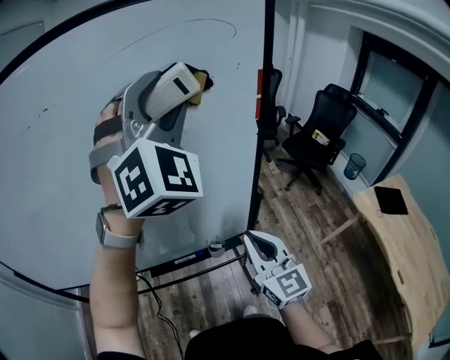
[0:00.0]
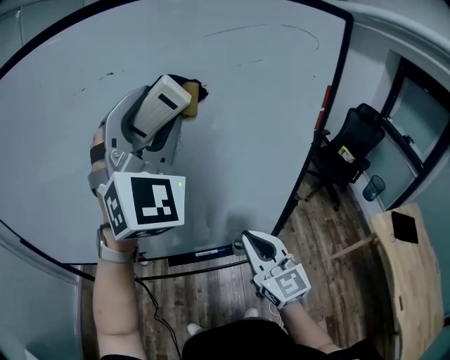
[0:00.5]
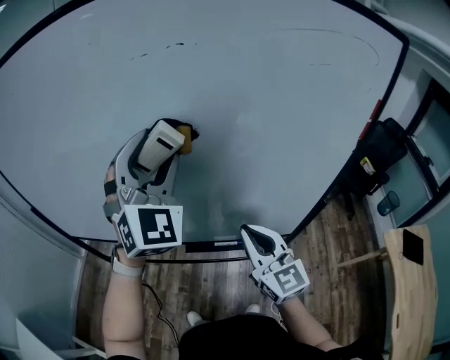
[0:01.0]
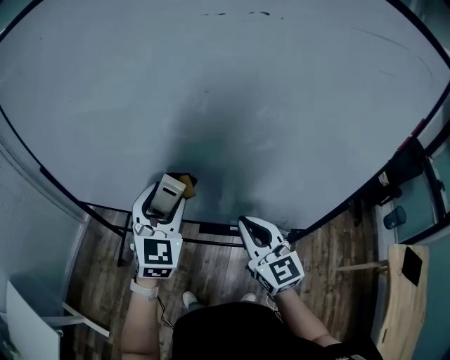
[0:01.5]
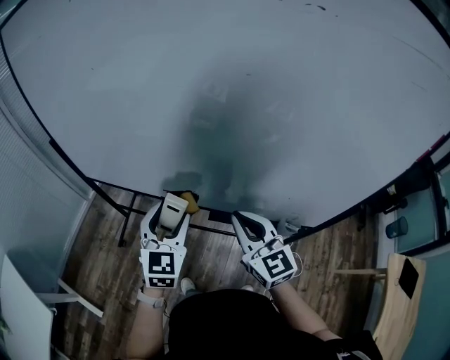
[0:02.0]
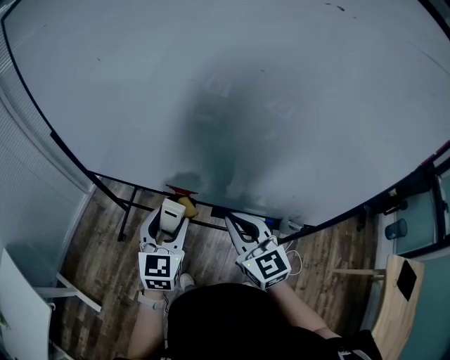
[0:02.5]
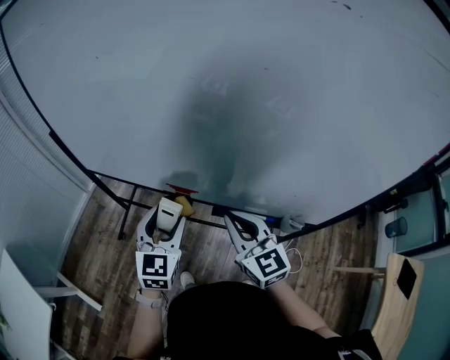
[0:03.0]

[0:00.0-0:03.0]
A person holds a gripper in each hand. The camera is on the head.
0:00.0 to 0:01.5: The left gripper shifts approximately 50 cm to the left and downward, and rolls counterclockwise, seen from behind, by approximately 40 degrees. Meanwhile the right gripper goes approximately 25 cm to the left, and changes its angle by approximately 30 degrees.
0:01.5 to 0:03.0: The right gripper heads to the left and downward, covering some 10 cm; the left gripper goes approximately 15 cm downward, to the left and backward.

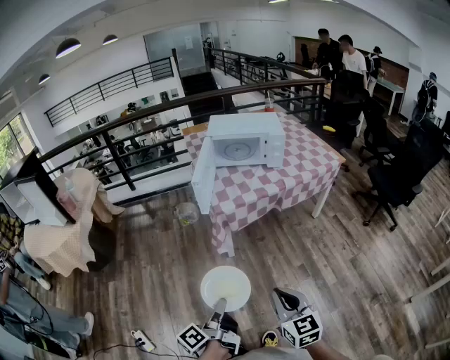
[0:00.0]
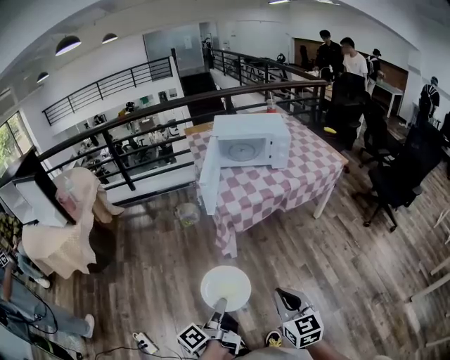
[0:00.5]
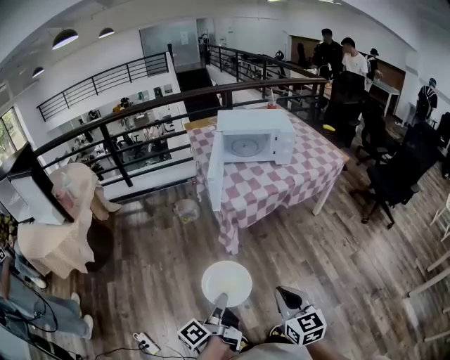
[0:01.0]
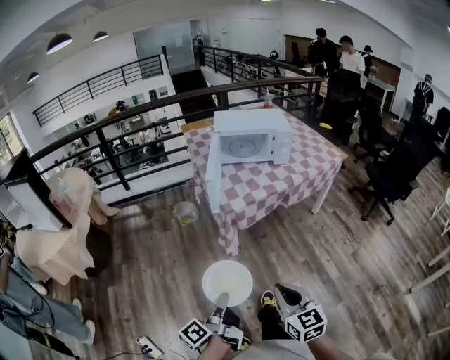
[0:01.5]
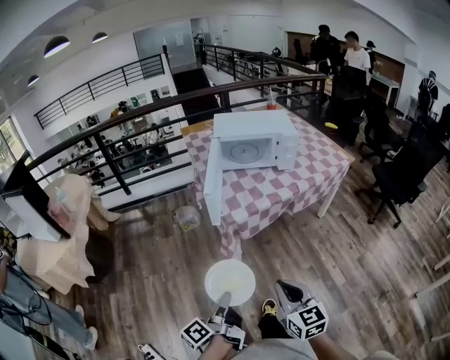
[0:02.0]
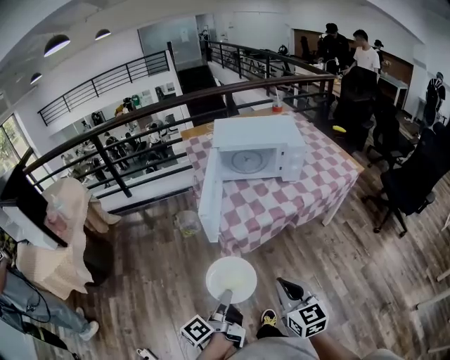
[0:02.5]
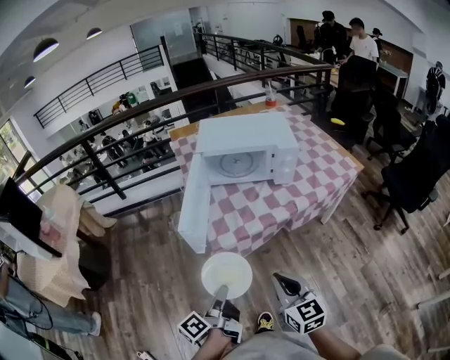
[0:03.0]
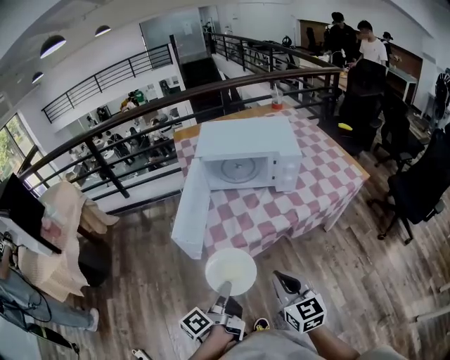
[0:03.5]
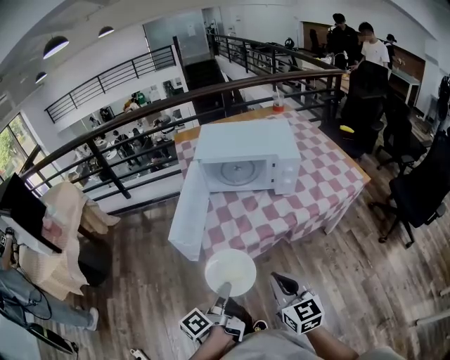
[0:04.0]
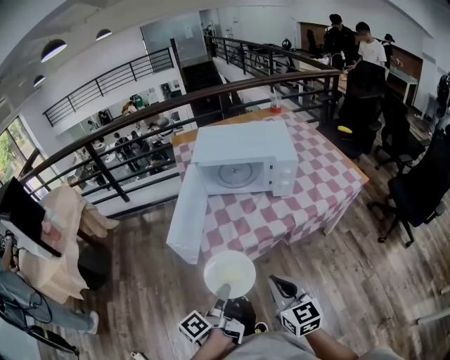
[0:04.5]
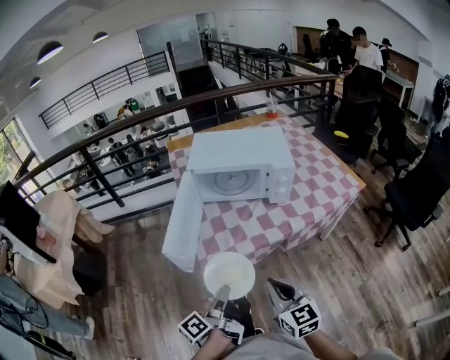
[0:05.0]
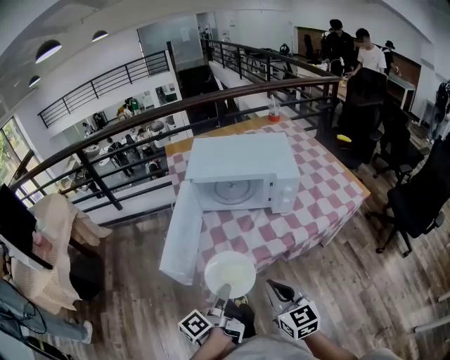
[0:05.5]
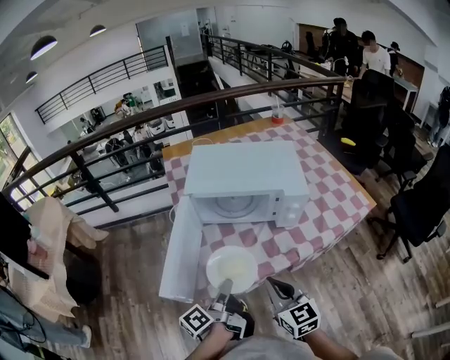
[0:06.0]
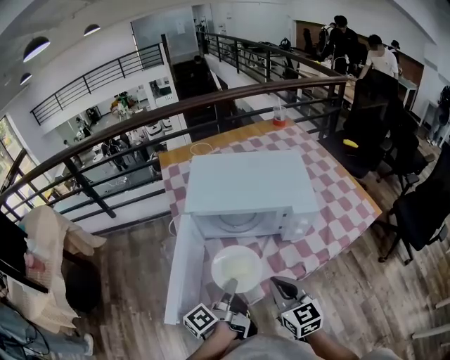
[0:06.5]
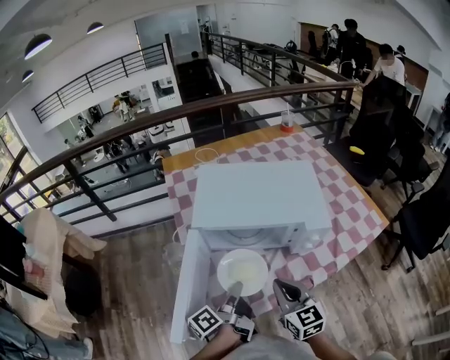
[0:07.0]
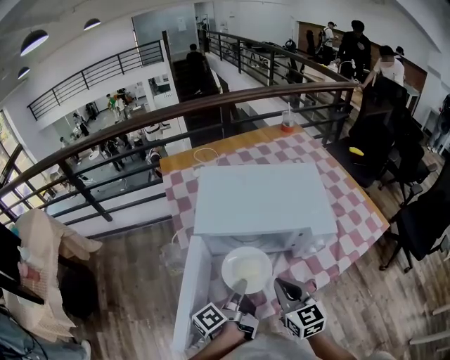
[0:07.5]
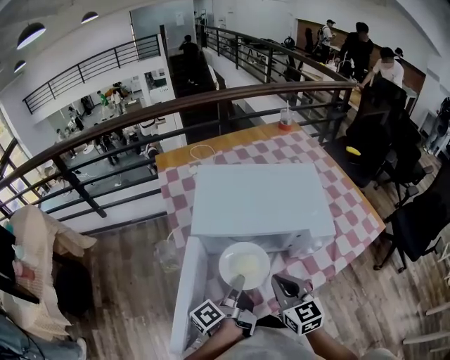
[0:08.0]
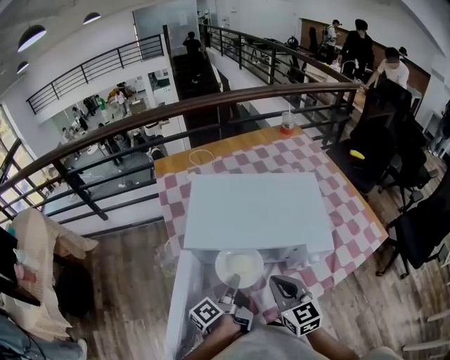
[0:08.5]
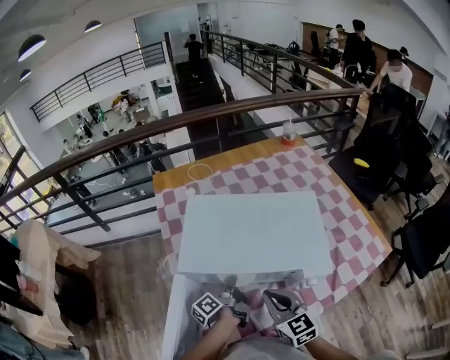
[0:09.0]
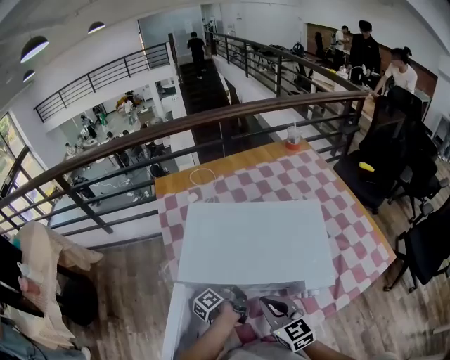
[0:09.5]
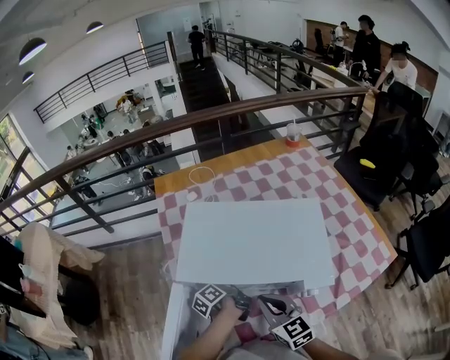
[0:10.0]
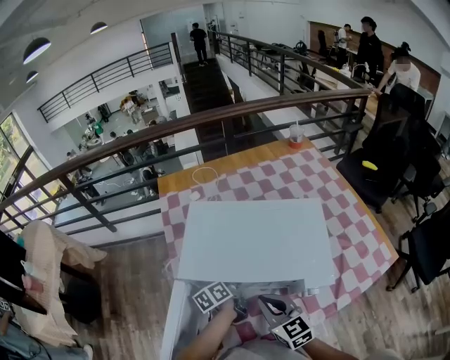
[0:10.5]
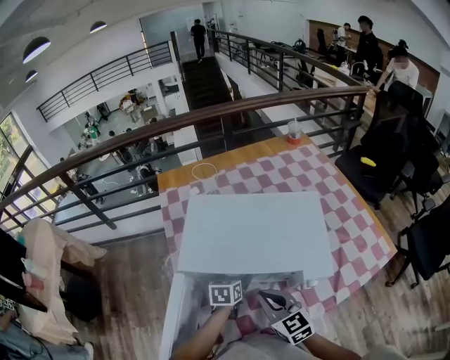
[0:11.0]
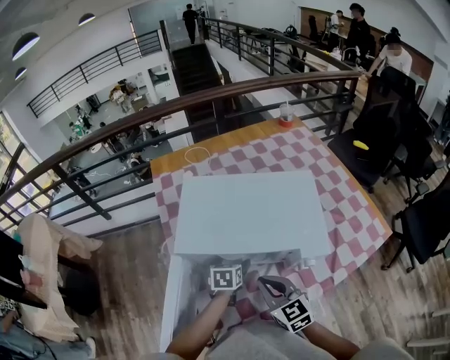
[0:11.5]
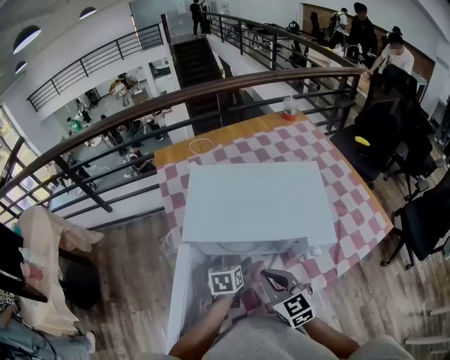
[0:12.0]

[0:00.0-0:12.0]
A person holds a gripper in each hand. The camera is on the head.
0:00.0 to 0:02.0: The two grippers go about 15 cm forward and to the left.
0:02.0 to 0:04.0: The two grippers go some 25 cm forward and to the right.
0:04.0 to 0:06.0: Both grippers move forward, roughly 20 cm.
0:06.0 to 0:08.0: The two grippers go some 20 cm forward.
0:08.0 to 0:10.0: The right gripper is displaced forward by roughly 10 cm. Meanwhile the left gripper shifts about 20 cm forward and downward, and turns by some 20 degrees.
0:10.0 to 0:12.0: The left gripper is displaced backward by some 10 cm, rolls clockwise, seen from behind, by approximately 60 degrees, and opens its fingers; the right gripper shifts by some 5 cm.

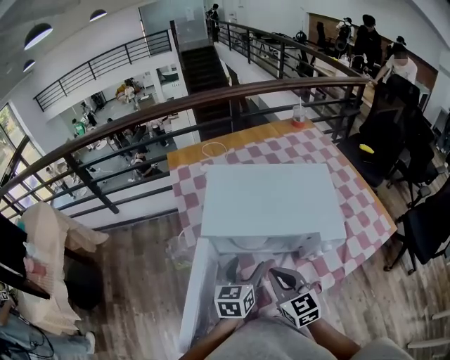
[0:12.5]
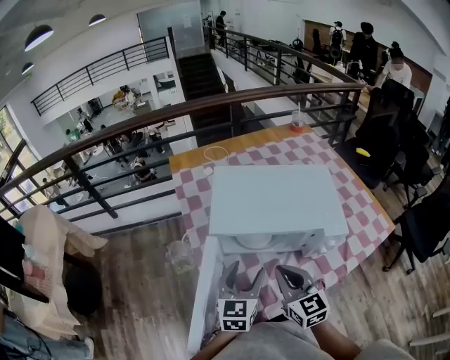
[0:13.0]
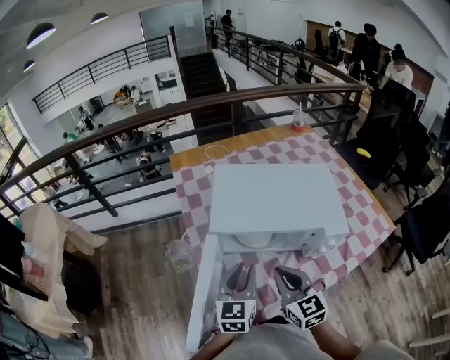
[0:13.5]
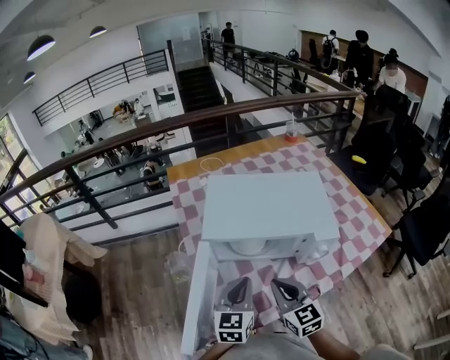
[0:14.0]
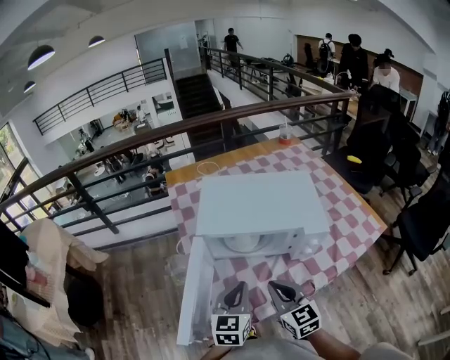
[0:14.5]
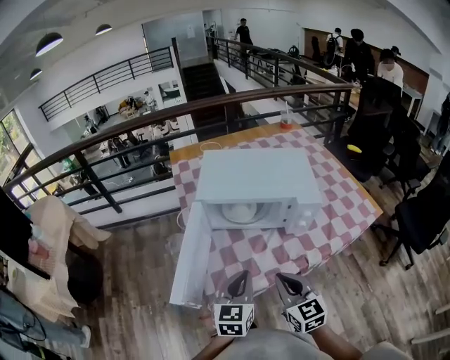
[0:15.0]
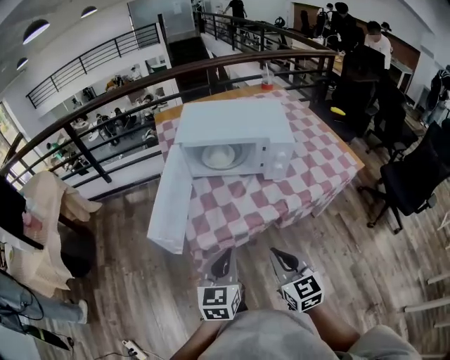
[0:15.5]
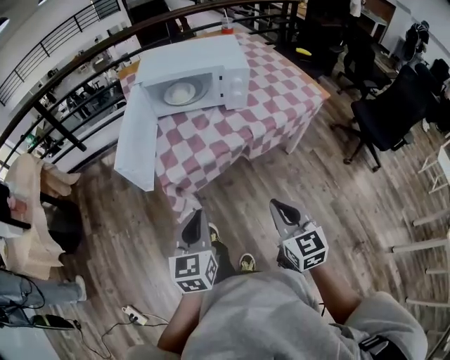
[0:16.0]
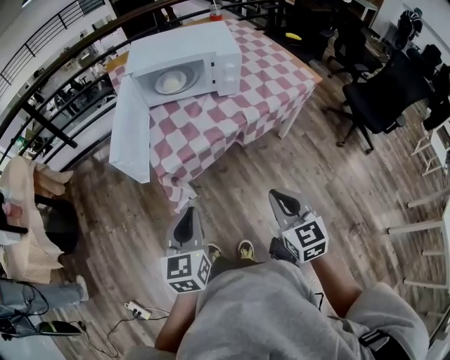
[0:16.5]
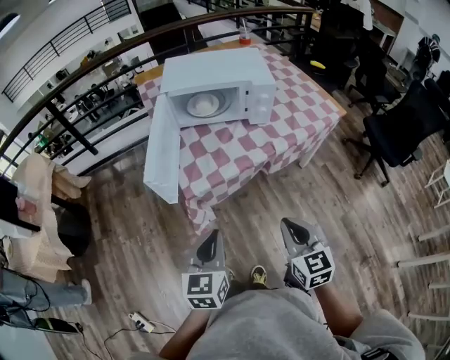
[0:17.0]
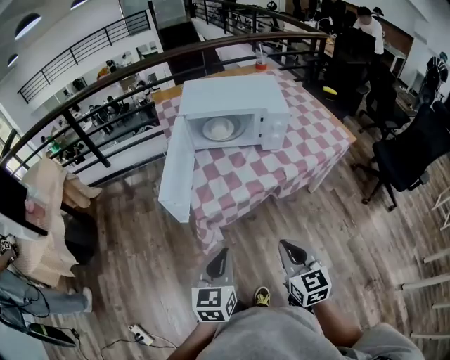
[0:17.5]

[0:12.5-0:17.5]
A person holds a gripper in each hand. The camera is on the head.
0:12.5 to 0:15.0: The two grippers go about 20 cm backward. The left gripper closes.
0:15.0 to 0:17.5: Both grippers move backward, about 25 cm.

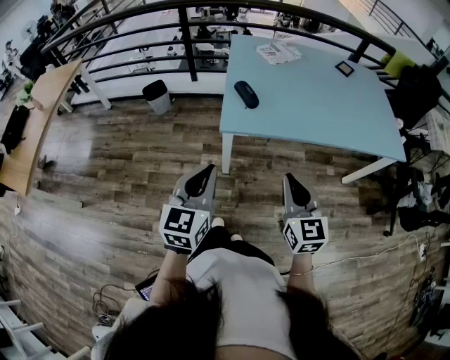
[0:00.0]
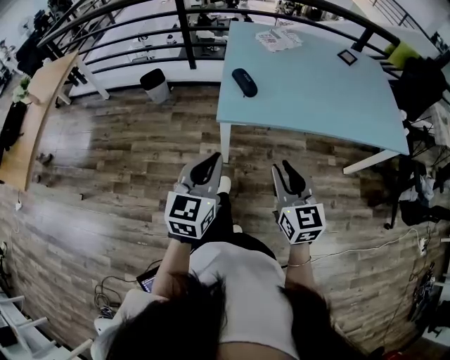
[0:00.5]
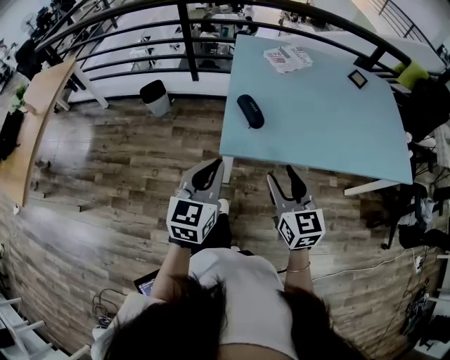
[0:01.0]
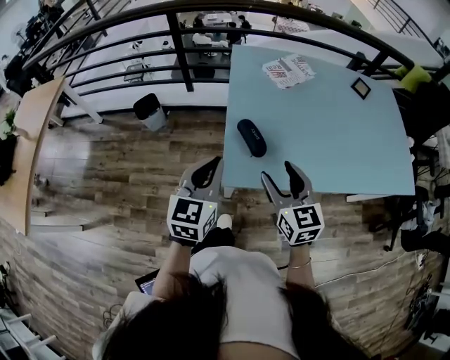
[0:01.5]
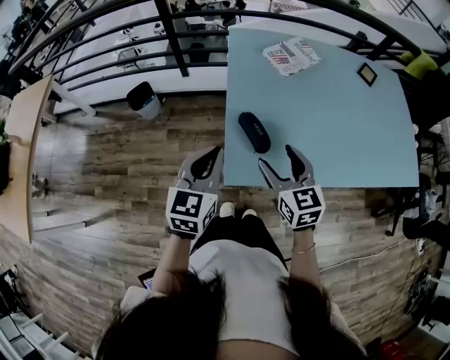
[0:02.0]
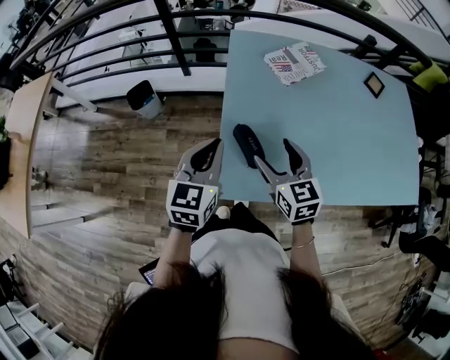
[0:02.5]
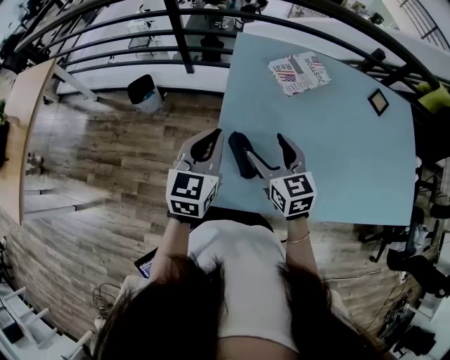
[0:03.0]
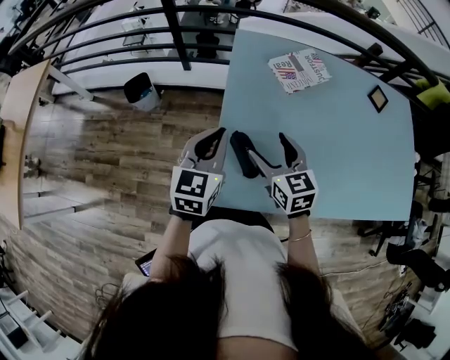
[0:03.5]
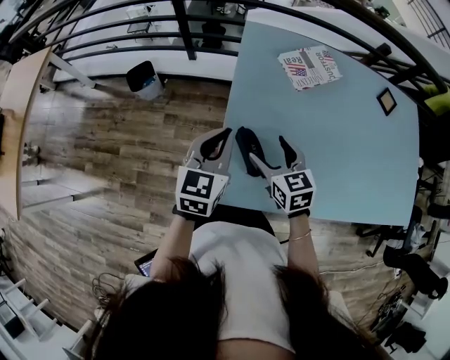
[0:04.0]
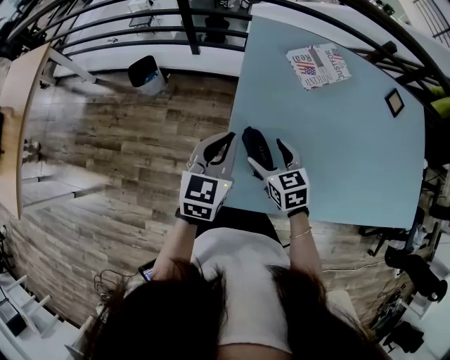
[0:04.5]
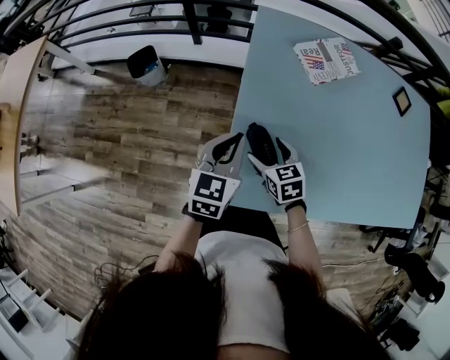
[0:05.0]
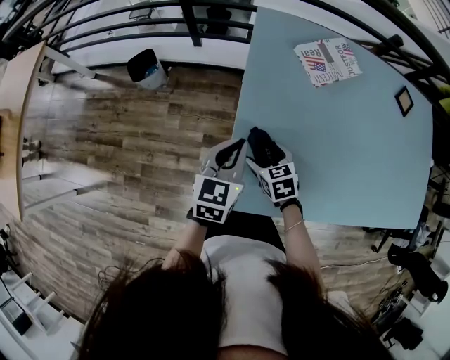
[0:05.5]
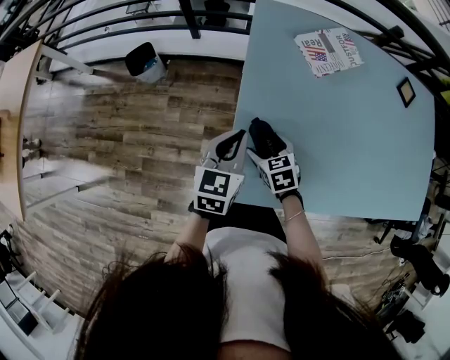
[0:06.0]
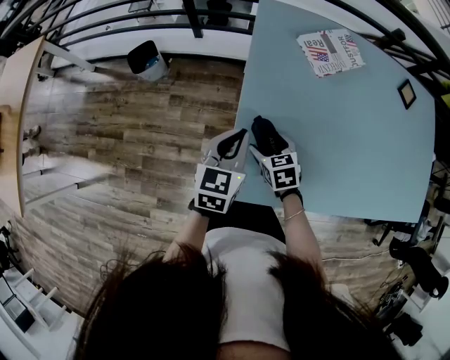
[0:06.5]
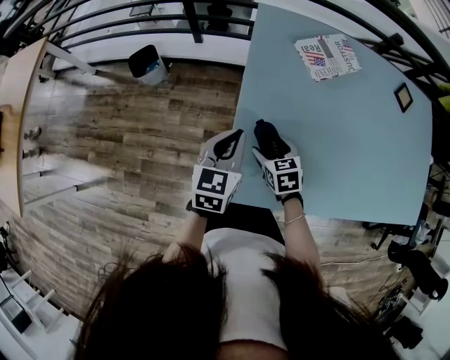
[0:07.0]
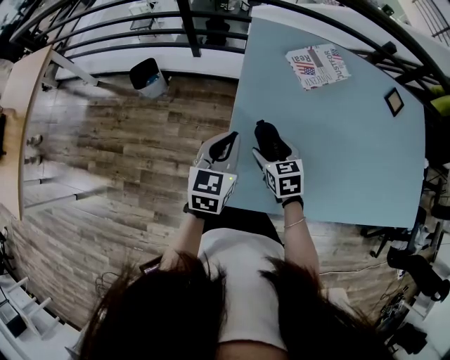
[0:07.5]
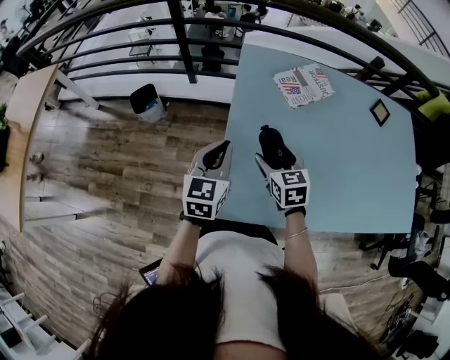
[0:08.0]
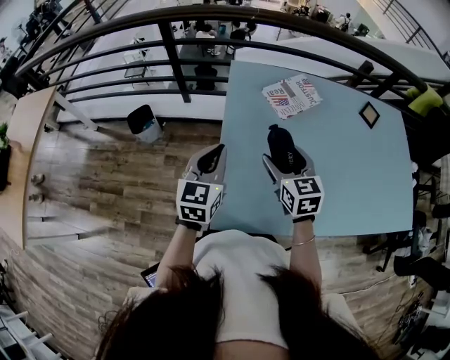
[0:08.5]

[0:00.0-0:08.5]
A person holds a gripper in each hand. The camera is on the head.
0:00.0 to 0:02.0: The two grippers go about 35 cm forward. The right gripper opens its fingers.
0:02.0 to 0:04.0: The right gripper moves forward and downward, approximately 15 cm; the left gripper is displaced forward by about 15 cm.
0:04.0 to 0:06.5: The right gripper goes roughly 15 cm downward, and rotates some 20 degrees. The left gripper moves downward, about 10 cm.
0:06.5 to 0:08.5: The left gripper shifts some 10 cm upward; the right gripper is displaced upward by approximately 20 cm, and turns by approximately 30 degrees.
